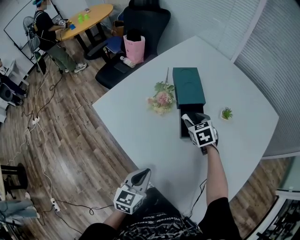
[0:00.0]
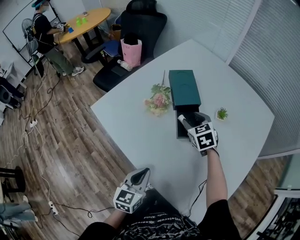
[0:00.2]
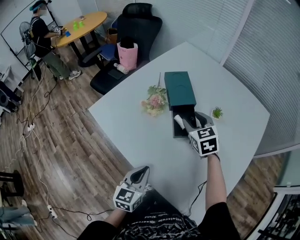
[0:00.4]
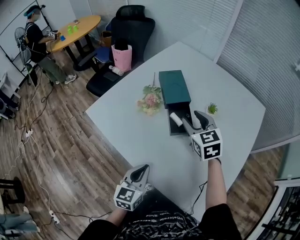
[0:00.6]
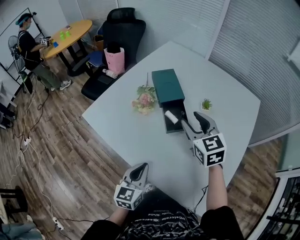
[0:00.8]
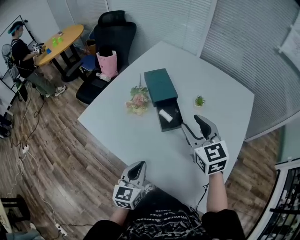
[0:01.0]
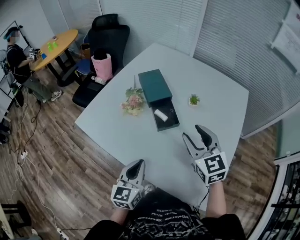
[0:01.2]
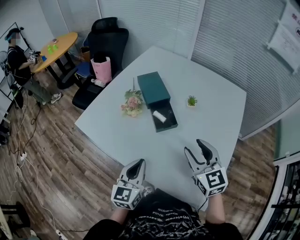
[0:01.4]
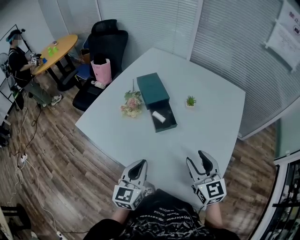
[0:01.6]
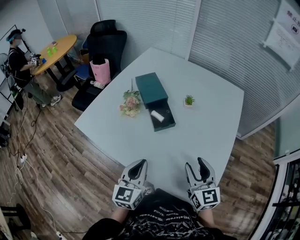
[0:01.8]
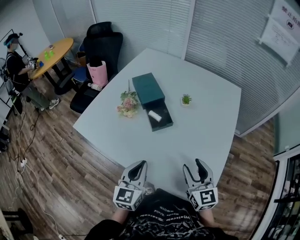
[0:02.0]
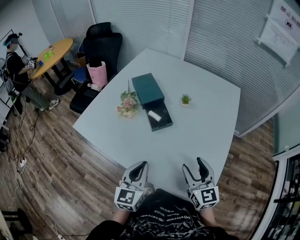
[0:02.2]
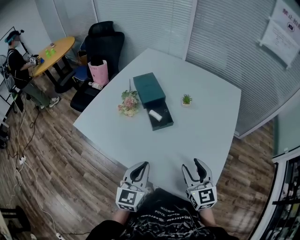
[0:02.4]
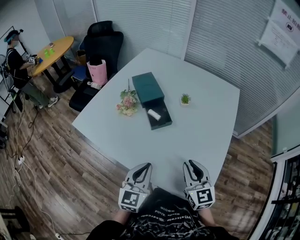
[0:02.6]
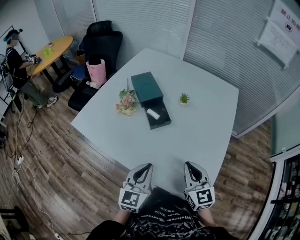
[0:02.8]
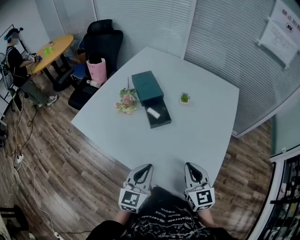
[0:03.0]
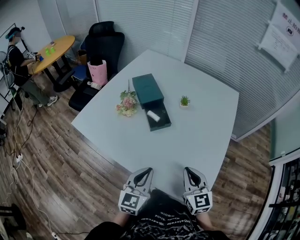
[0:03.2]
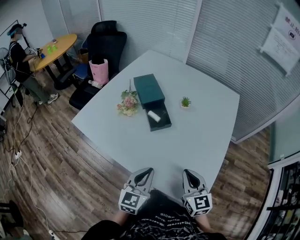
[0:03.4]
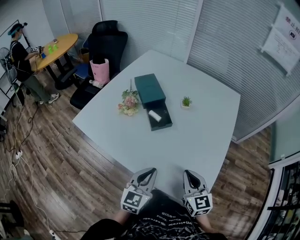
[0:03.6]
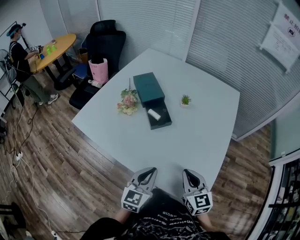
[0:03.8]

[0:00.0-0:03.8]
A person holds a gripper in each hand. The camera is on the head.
0.0 to 1.2 s: The right gripper shifts about 30 cm upward and backward, and rotates approximately 30 degrees. The left gripper shifts roughly 5 cm upward.
1.2 to 2.6 s: The right gripper heads backward and downward, covering some 15 cm, and closes up; the left gripper heads to the right, covering approximately 5 cm.
2.6 to 3.8 s: The right gripper closes.

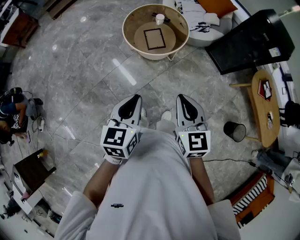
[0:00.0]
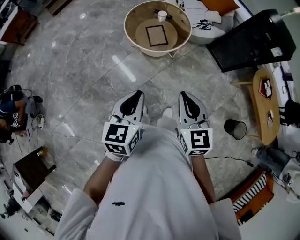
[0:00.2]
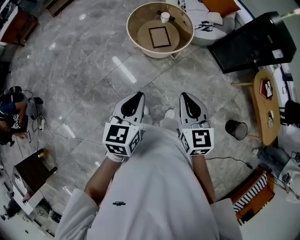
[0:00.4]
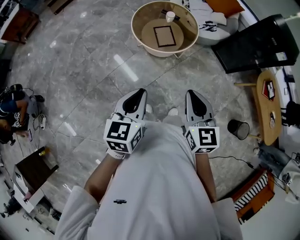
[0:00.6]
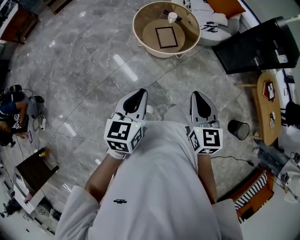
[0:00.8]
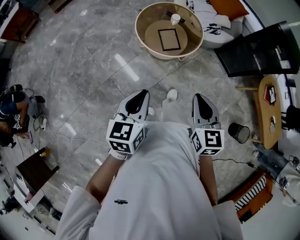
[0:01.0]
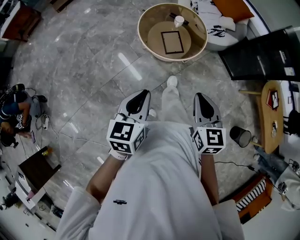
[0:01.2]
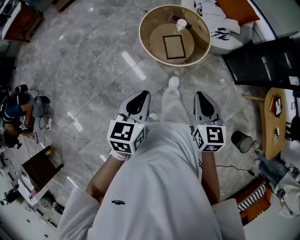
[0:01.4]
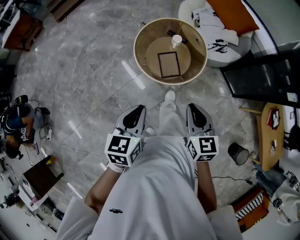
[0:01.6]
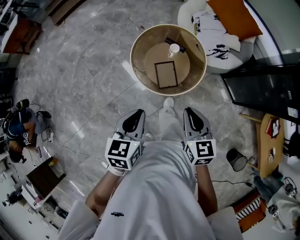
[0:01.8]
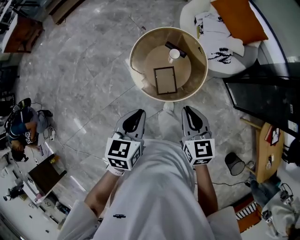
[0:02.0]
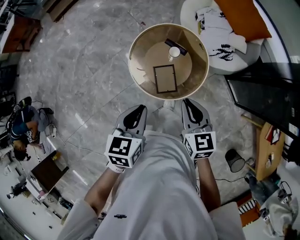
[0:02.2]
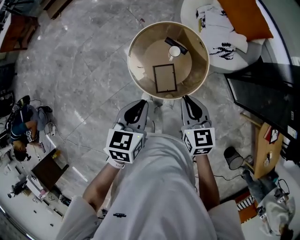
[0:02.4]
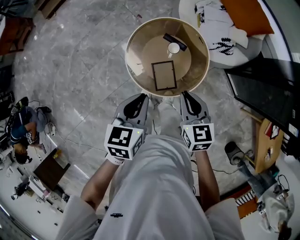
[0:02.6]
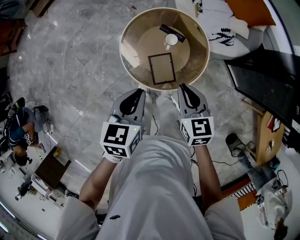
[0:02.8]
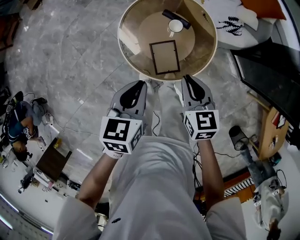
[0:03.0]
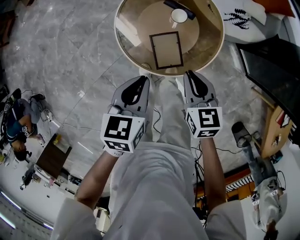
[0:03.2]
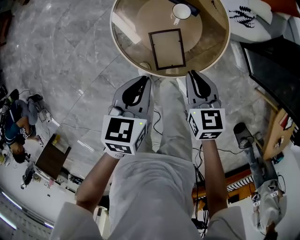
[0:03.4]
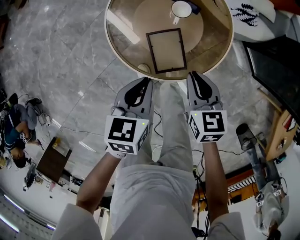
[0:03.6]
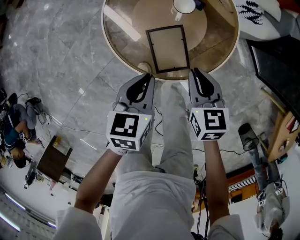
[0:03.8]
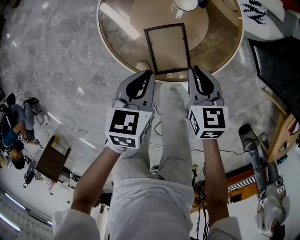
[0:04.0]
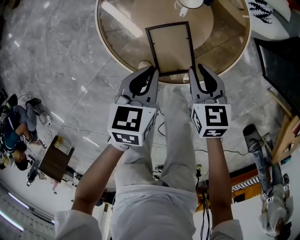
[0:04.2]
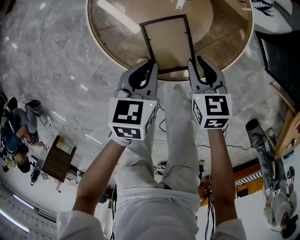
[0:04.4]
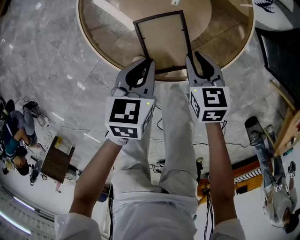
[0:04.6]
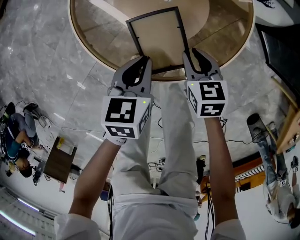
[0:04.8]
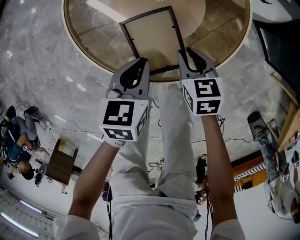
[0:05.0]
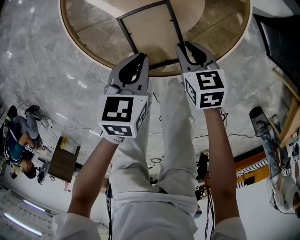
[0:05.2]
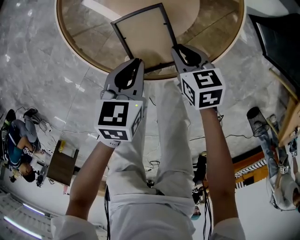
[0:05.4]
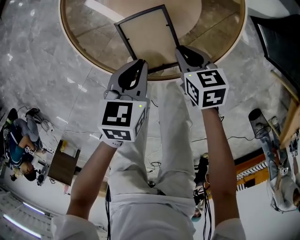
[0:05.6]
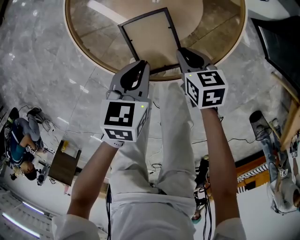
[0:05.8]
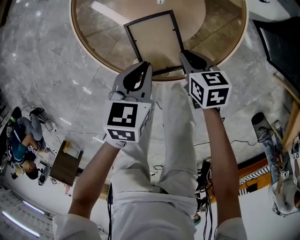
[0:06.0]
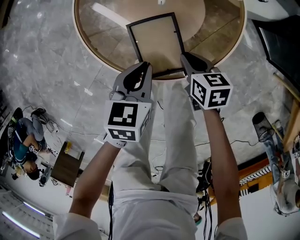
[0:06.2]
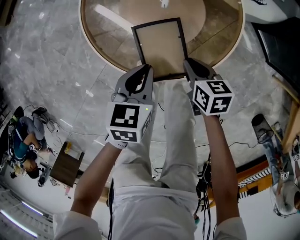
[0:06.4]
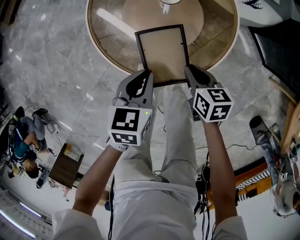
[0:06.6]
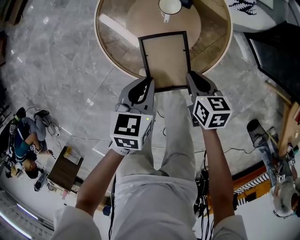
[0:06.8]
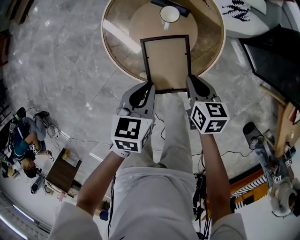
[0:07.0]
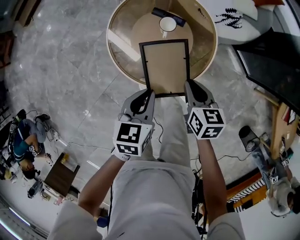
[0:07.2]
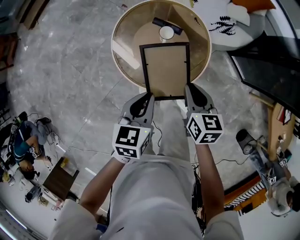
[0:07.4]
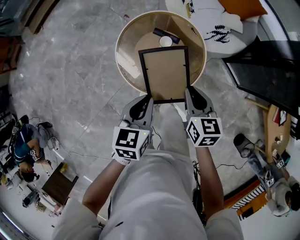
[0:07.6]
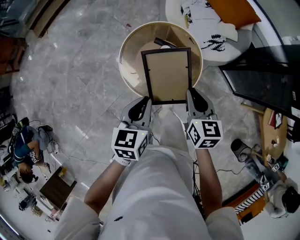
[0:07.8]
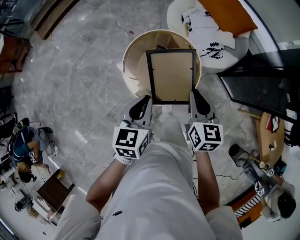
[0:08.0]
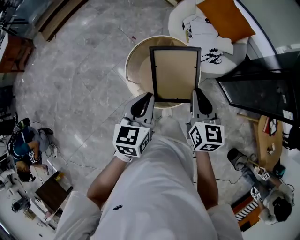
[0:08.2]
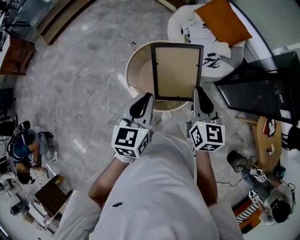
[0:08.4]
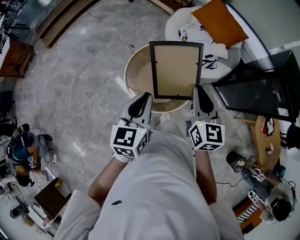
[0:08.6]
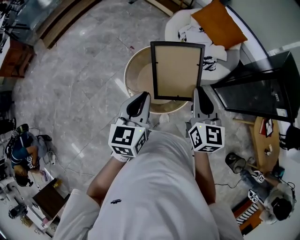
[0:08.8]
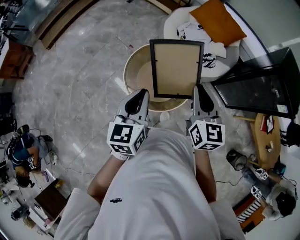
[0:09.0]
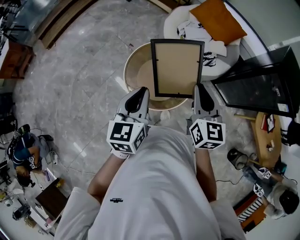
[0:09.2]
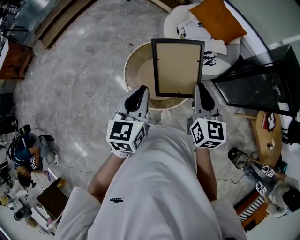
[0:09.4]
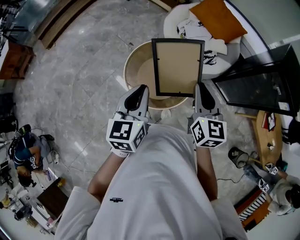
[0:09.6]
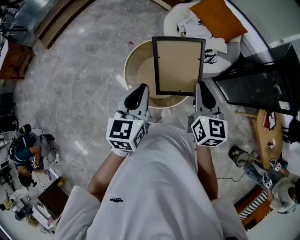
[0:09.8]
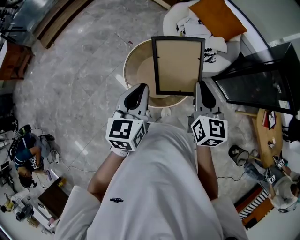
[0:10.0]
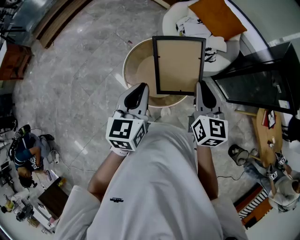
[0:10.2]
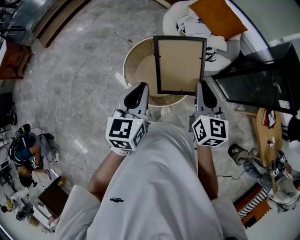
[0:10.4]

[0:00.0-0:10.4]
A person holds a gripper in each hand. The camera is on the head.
0.0 to 1.4 s: The left gripper heads forward and to the left, covering about 20 cm. Meanwhile the right gripper shifts some 20 cm forward.
1.4 to 3.0 s: The two grippers go roughly 35 cm forward and downward.
3.0 to 4.4 s: Both grippers travel together downward, approximately 30 cm.
4.4 to 6.0 s: The right gripper goes about 5 cm downward.
6.0 to 7.4 s: The grippers both shift upward by roughly 30 cm. The right gripper changes its angle by roughly 20 degrees.
7.4 to 9.0 s: The grippers both shift upward by roughly 30 cm. The left gripper changes its angle by some 20 degrees. The right gripper swivels approximately 30 degrees.
9.0 to 10.4 s: There are only small adjustments of the grippers.

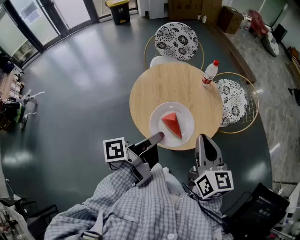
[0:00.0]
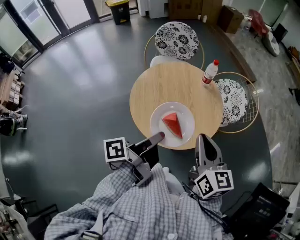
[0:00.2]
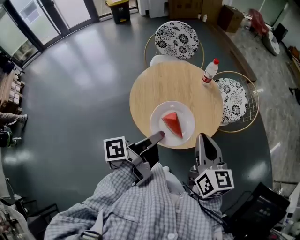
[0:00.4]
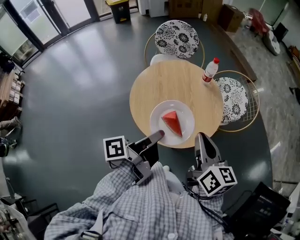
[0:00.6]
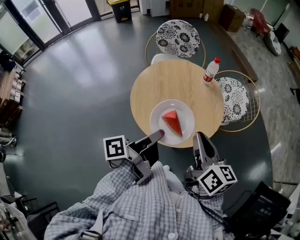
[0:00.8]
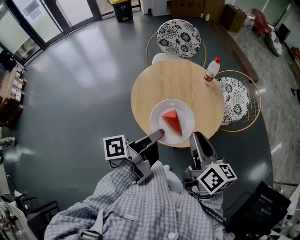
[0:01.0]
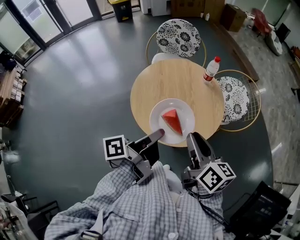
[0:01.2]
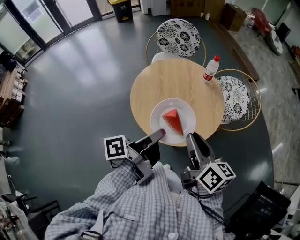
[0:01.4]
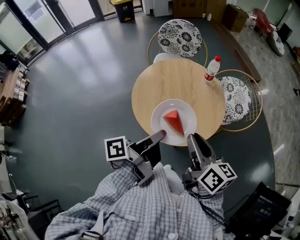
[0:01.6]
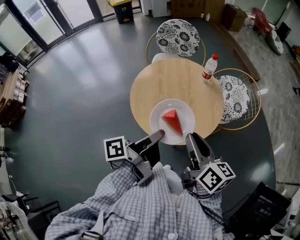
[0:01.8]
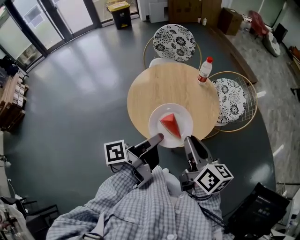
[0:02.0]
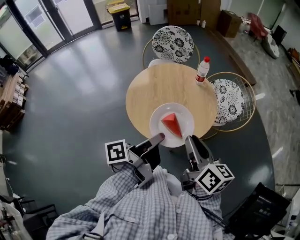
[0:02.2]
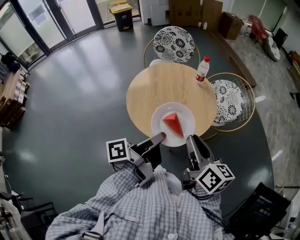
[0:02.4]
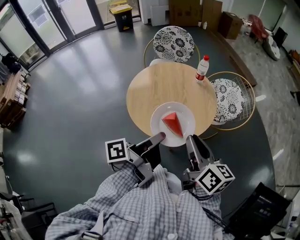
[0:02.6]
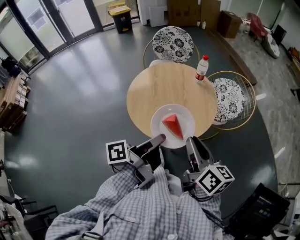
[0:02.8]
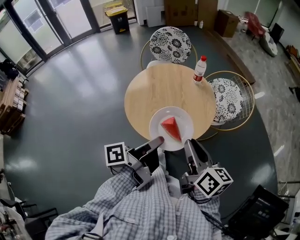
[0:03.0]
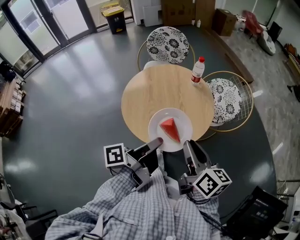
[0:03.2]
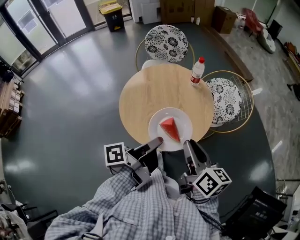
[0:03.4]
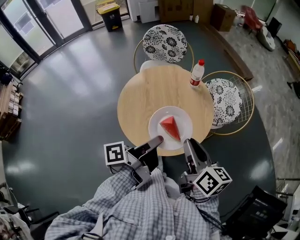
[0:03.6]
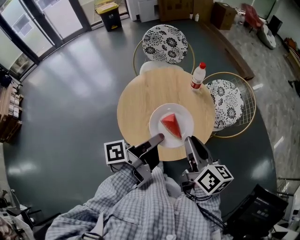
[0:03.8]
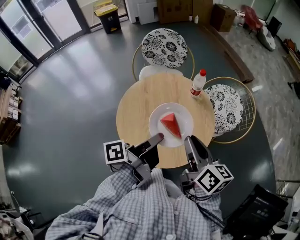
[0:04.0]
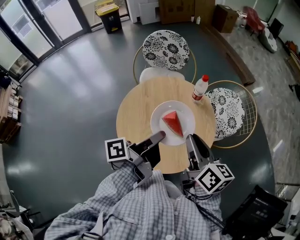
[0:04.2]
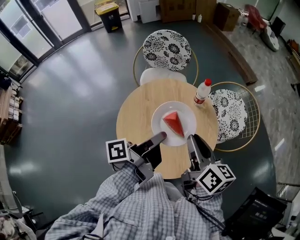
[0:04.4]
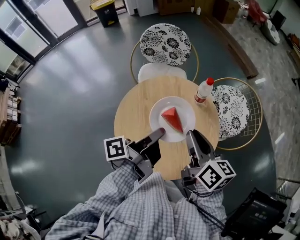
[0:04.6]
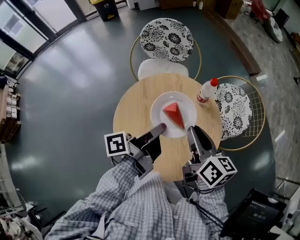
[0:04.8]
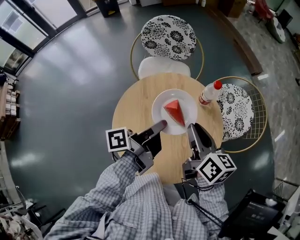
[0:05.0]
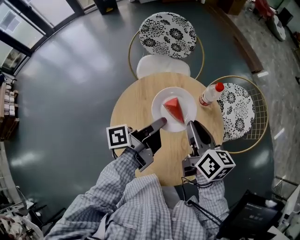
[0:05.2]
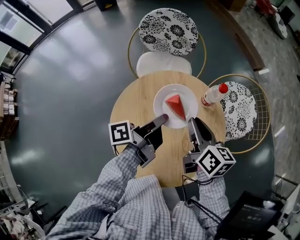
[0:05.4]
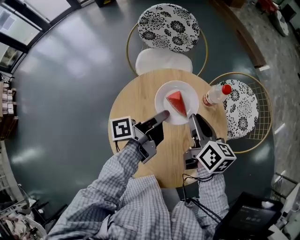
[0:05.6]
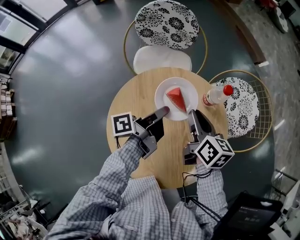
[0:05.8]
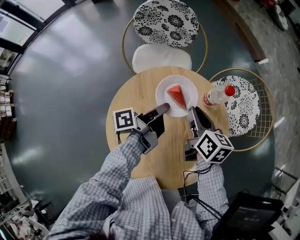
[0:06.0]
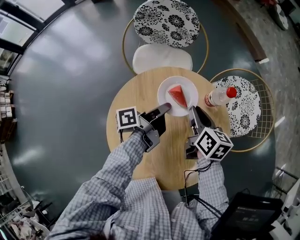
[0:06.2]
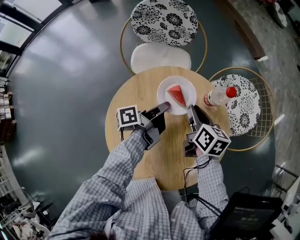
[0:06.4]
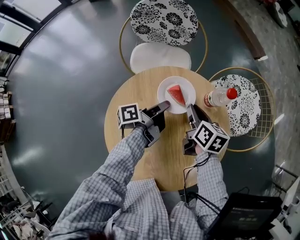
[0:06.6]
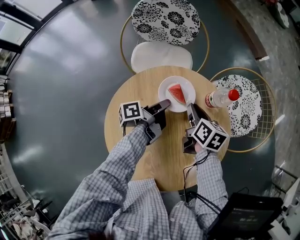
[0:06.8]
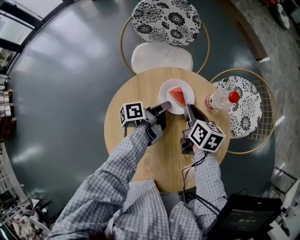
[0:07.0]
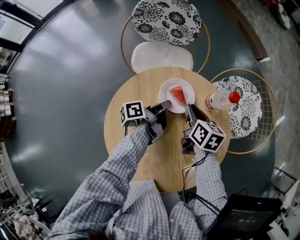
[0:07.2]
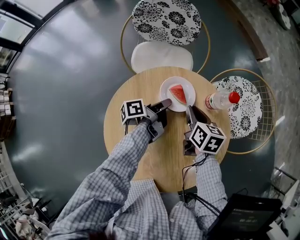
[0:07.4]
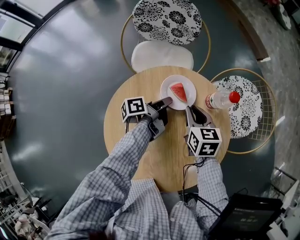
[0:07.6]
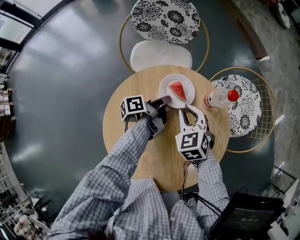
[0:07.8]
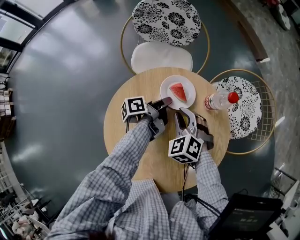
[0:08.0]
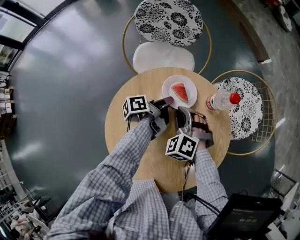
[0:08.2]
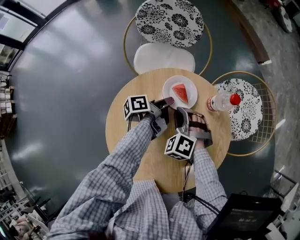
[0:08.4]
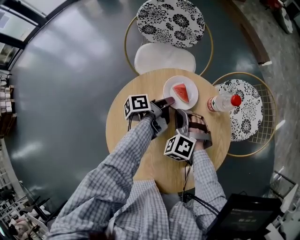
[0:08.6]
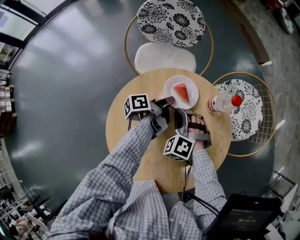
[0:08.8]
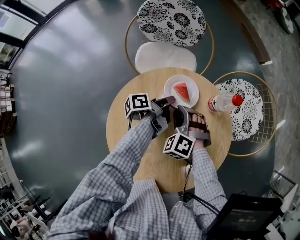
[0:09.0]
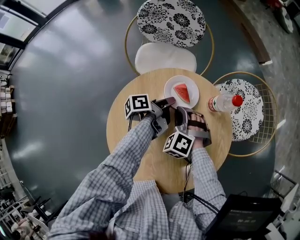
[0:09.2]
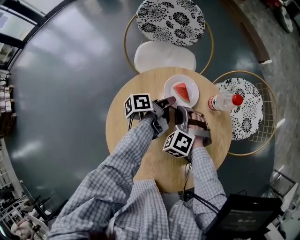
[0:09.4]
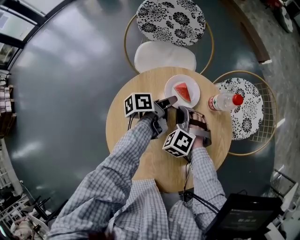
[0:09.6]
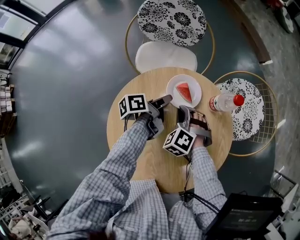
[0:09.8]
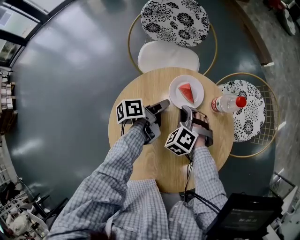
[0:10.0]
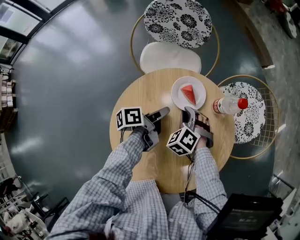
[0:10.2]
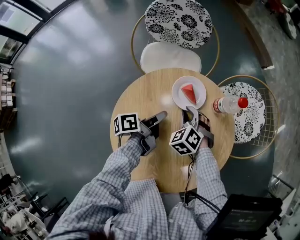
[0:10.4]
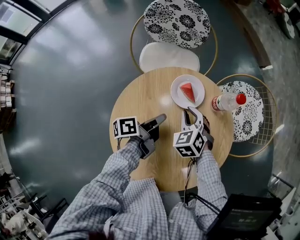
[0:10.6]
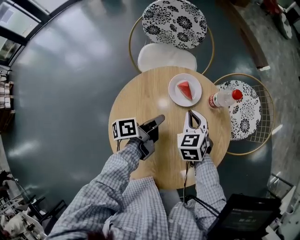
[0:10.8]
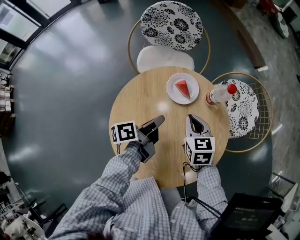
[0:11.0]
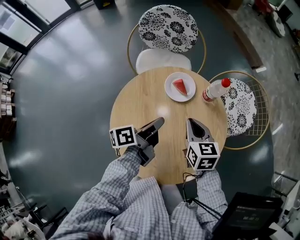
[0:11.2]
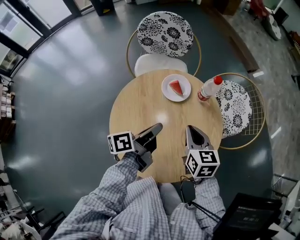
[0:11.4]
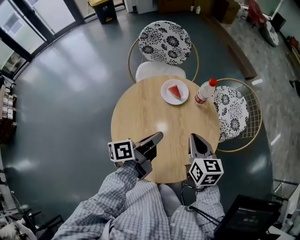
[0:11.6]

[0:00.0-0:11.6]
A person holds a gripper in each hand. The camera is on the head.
0.0 to 1.4 s: The right gripper rotates approximately 30 degrees.
1.4 to 2.8 s: The right gripper shifts by some 5 cm.
2.8 to 4.4 s: The right gripper changes place by about 20 cm.
4.4 to 5.8 s: The right gripper changes place by approximately 25 cm.
5.8 to 7.2 s: The right gripper shifts about 10 cm downward.
7.2 to 8.8 s: The right gripper changes place by roughly 10 cm, and rolls counterclockwise, seen from behind, by about 90 degrees.
10.2 to 11.6 s: The right gripper moves some 25 cm, and rolls clockwise, seen from behind, by approximately 60 degrees.
